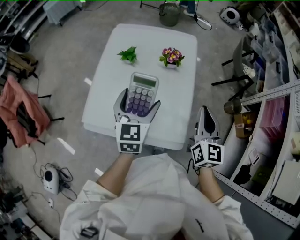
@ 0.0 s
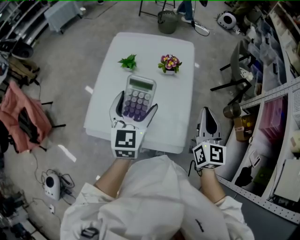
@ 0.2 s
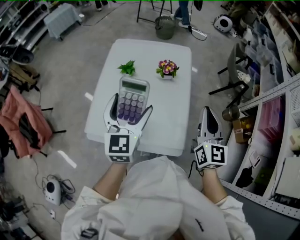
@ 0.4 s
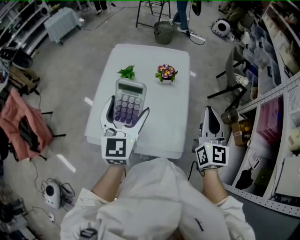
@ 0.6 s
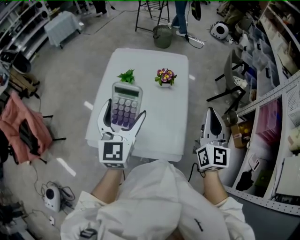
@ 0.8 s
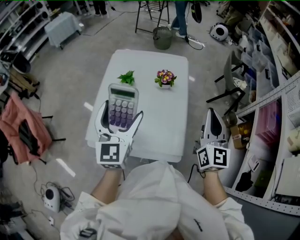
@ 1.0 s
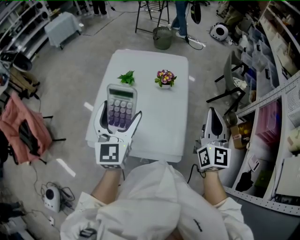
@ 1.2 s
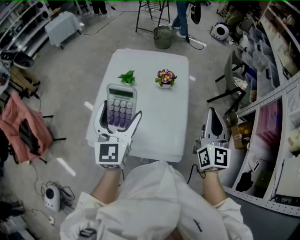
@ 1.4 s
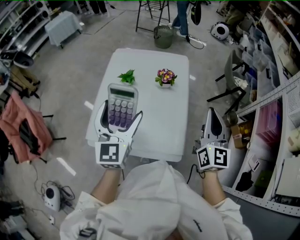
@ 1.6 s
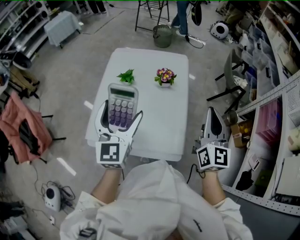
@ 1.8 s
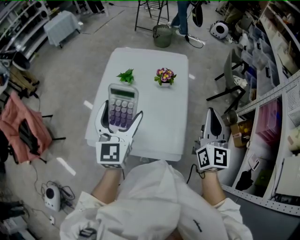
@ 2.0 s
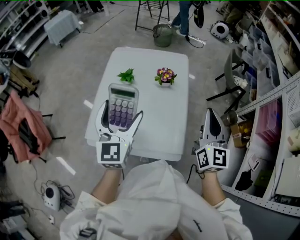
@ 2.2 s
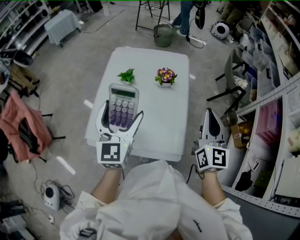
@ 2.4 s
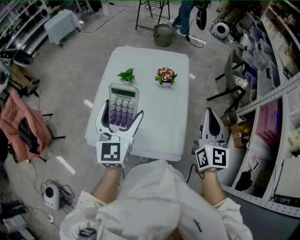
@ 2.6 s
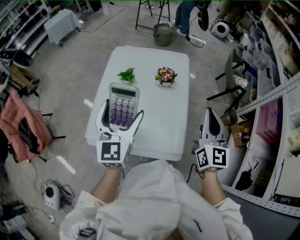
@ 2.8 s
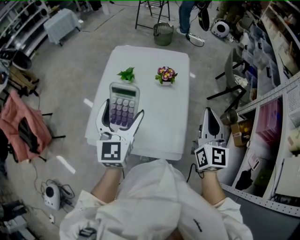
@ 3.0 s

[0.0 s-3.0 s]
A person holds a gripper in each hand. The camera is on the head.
0.0 to 1.6 s: The two grippers go approximately 10 cm upward.
1.6 to 3.0 s: The grippers make only small movements.

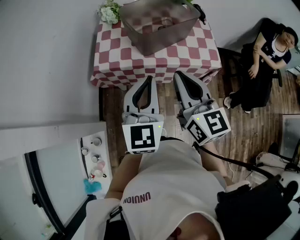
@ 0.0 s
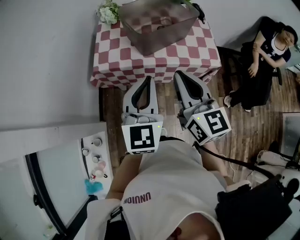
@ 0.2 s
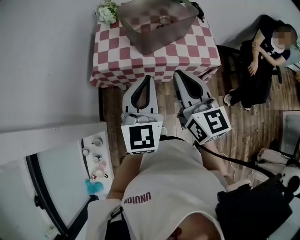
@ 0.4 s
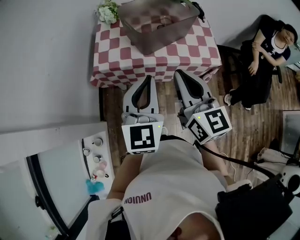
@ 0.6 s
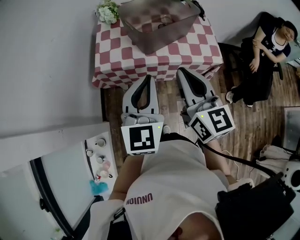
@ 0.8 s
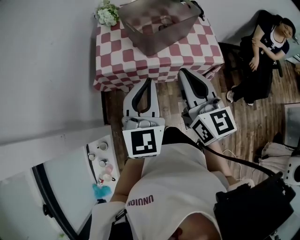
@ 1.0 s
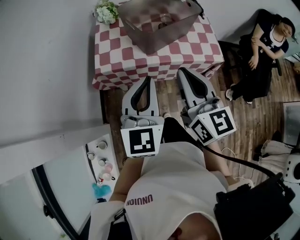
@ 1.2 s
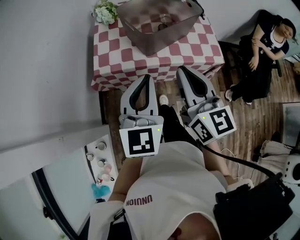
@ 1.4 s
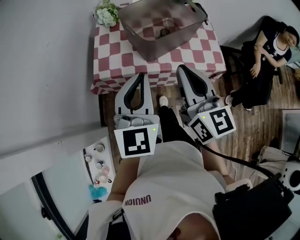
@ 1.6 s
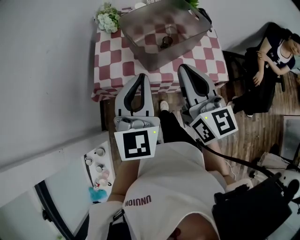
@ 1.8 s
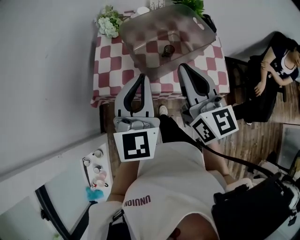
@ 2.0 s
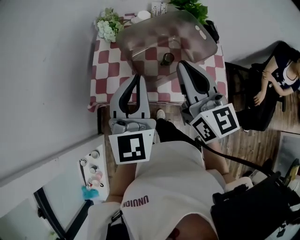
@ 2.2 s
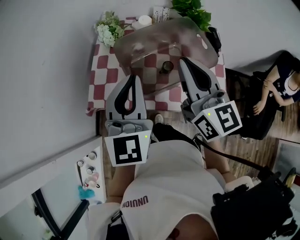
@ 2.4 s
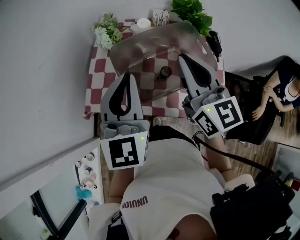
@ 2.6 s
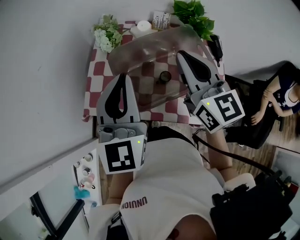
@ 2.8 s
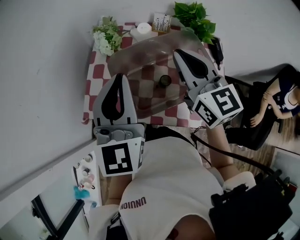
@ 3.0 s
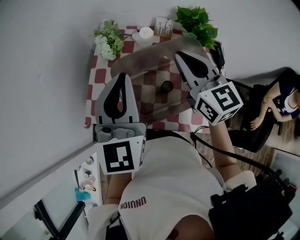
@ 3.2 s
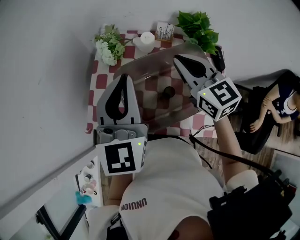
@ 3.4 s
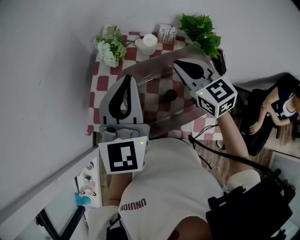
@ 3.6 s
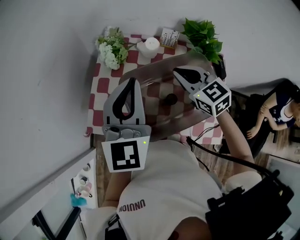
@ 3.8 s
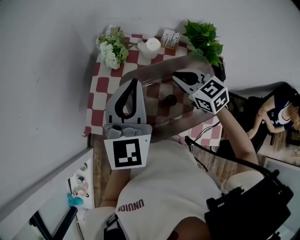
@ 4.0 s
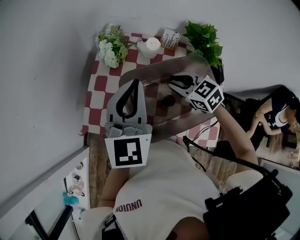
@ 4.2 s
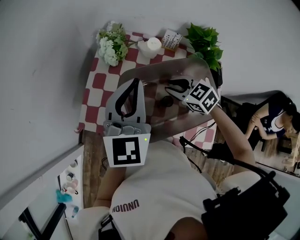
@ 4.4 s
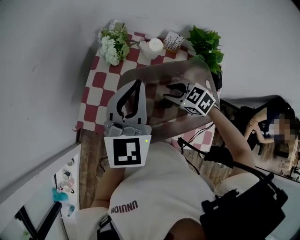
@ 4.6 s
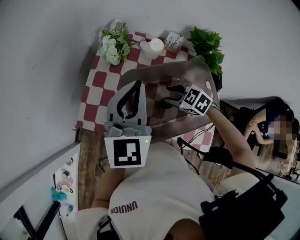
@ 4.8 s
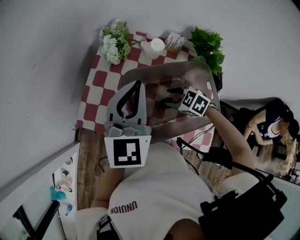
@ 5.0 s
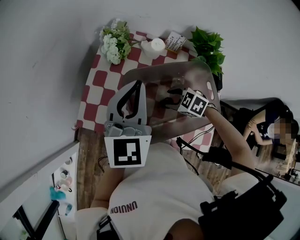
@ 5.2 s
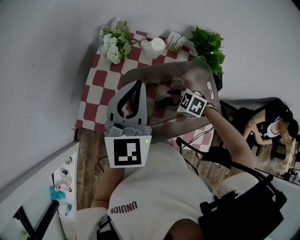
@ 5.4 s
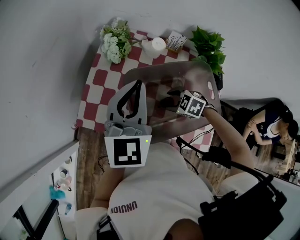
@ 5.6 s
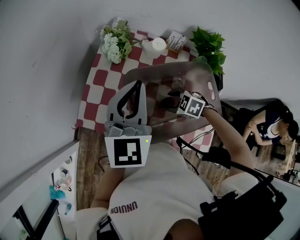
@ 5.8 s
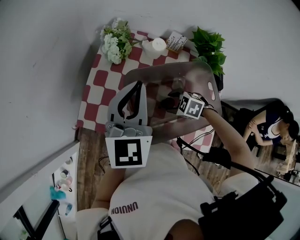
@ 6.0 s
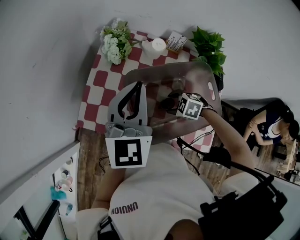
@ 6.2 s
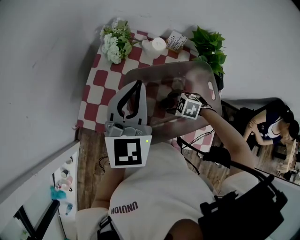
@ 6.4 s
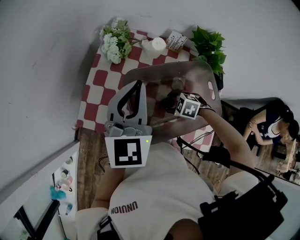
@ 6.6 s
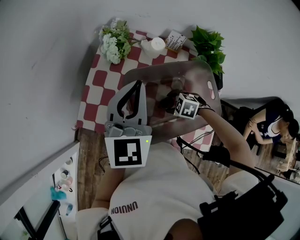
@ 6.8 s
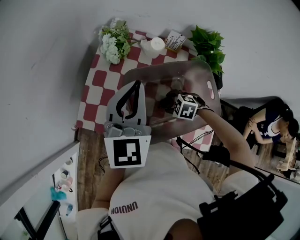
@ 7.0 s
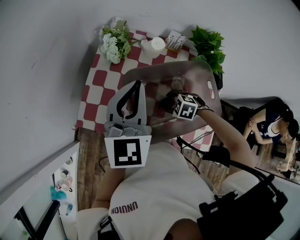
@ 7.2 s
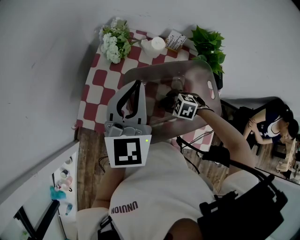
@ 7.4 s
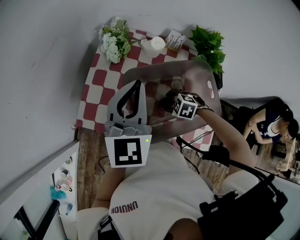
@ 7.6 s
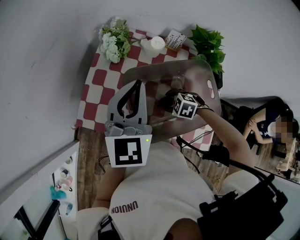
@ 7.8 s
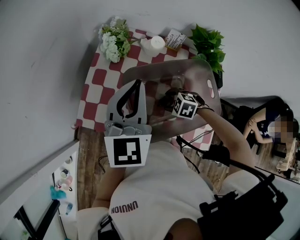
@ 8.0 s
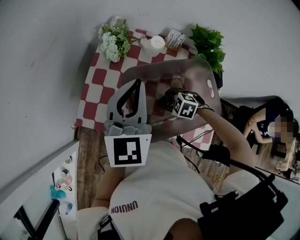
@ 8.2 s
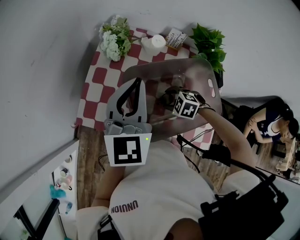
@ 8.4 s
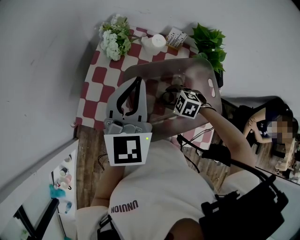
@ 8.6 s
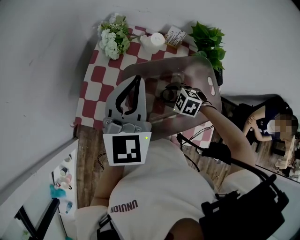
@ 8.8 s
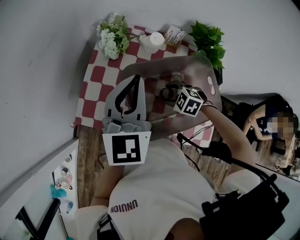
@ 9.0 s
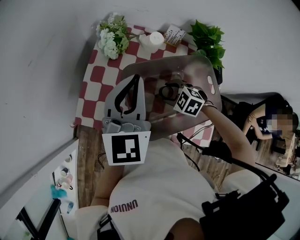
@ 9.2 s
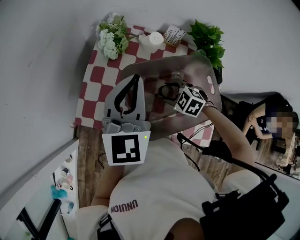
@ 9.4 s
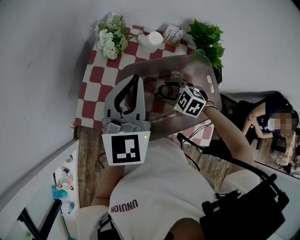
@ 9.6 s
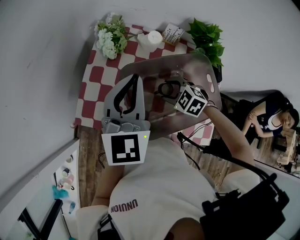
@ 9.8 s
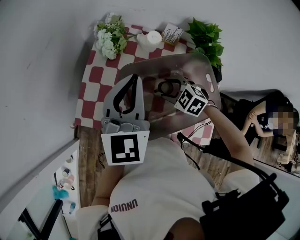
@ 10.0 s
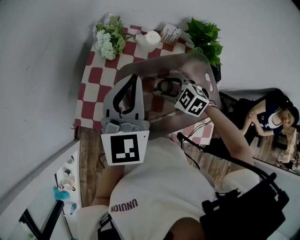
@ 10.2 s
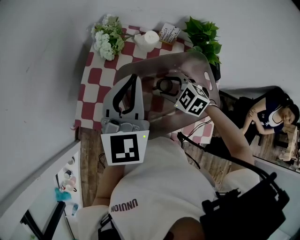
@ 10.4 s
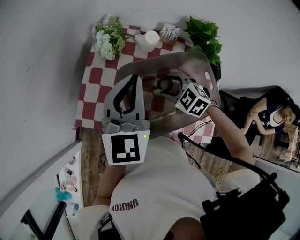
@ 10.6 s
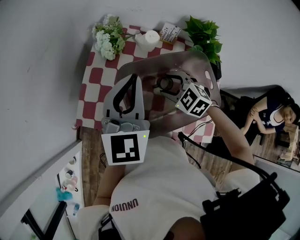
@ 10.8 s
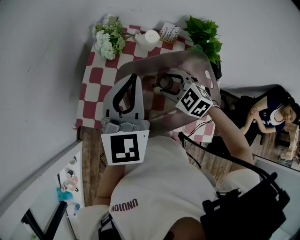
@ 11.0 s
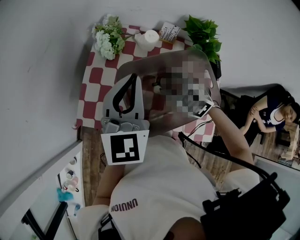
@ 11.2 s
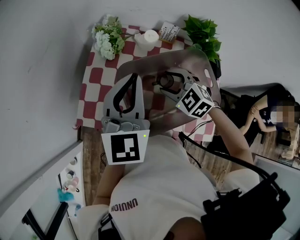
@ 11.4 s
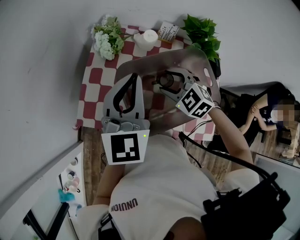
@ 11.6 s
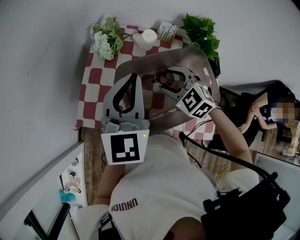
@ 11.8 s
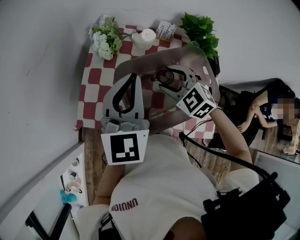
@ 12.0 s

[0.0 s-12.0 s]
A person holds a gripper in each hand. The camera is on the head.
0.0 to 1.6 s: The two grippers go about 5 cm forward.
1.6 to 3.0 s: Both grippers travel together forward, about 25 cm. The right gripper changes its angle by approximately 20 degrees.
3.0 to 4.4 s: The left gripper goes some 5 cm forward. The right gripper is displaced downward by roughly 20 cm, tips its fingers downward by roughly 40 degrees, and opens.
4.4 to 6.0 s: The right gripper moves downward and backward, about 15 cm, swivels roughly 30 degrees, and opens.
6.0 to 9.0 s: The grippers move only a little.
9.0 to 10.4 s: The right gripper moves upward, approximately 5 cm.
10.4 to 12.0 s: The right gripper is displaced upward by some 5 cm.

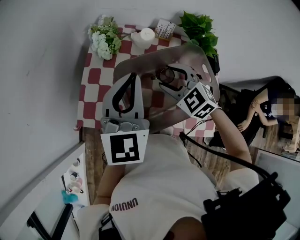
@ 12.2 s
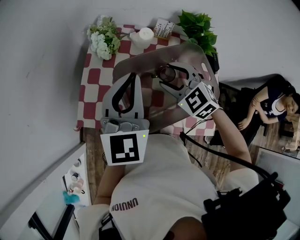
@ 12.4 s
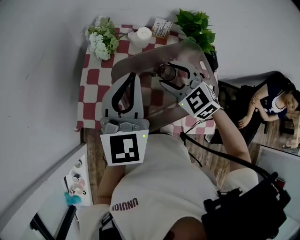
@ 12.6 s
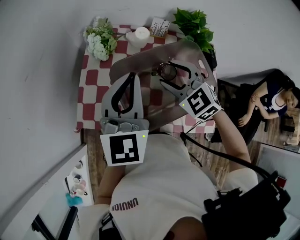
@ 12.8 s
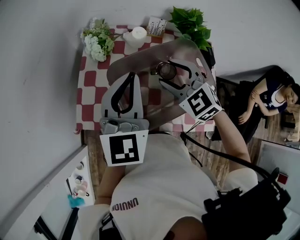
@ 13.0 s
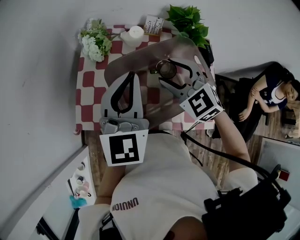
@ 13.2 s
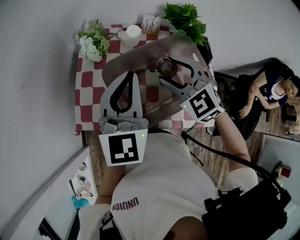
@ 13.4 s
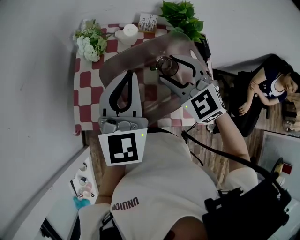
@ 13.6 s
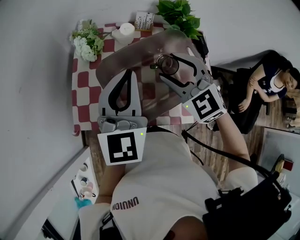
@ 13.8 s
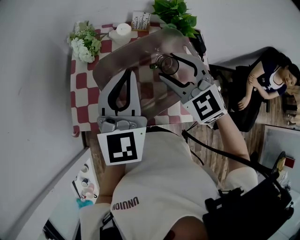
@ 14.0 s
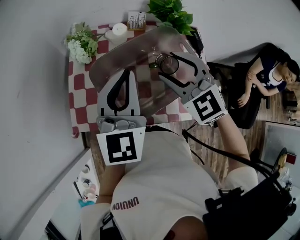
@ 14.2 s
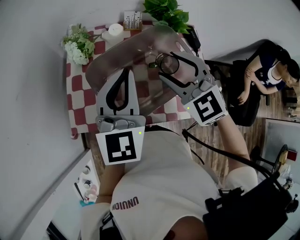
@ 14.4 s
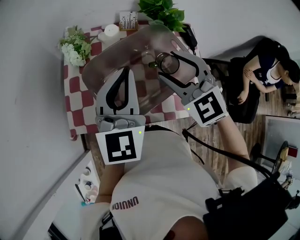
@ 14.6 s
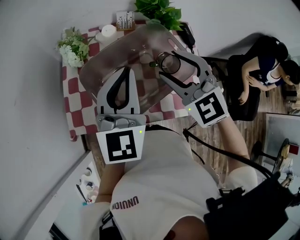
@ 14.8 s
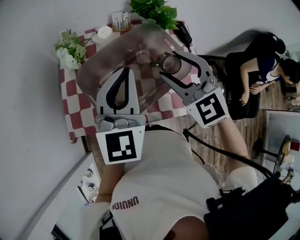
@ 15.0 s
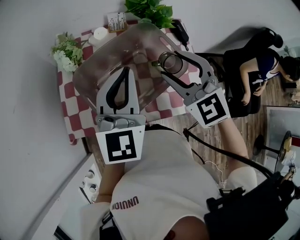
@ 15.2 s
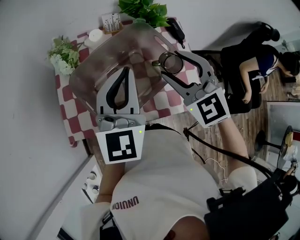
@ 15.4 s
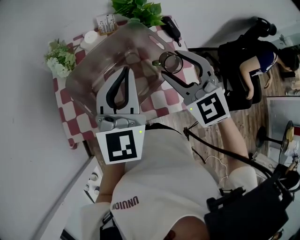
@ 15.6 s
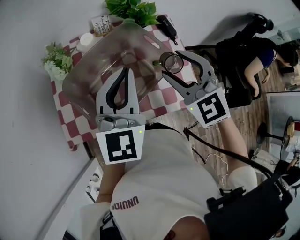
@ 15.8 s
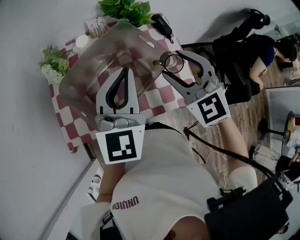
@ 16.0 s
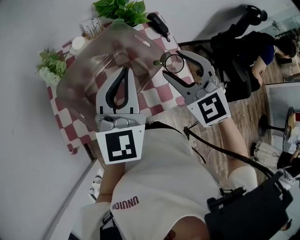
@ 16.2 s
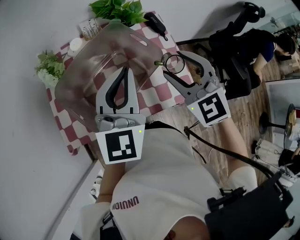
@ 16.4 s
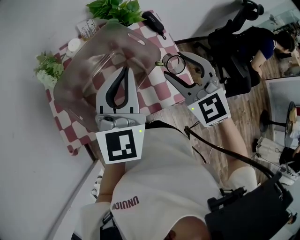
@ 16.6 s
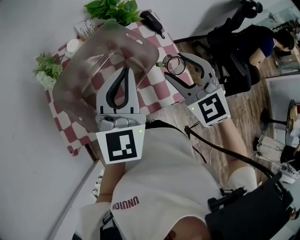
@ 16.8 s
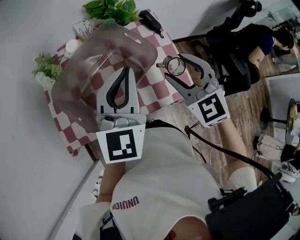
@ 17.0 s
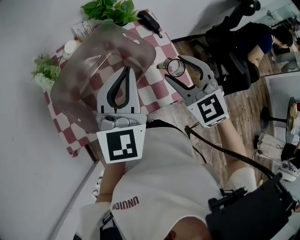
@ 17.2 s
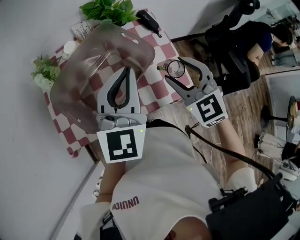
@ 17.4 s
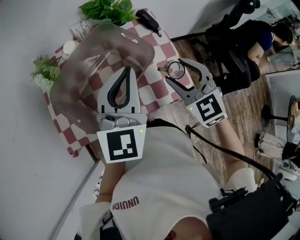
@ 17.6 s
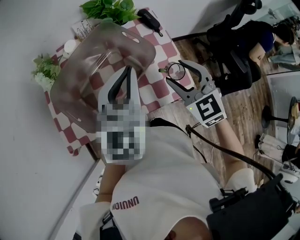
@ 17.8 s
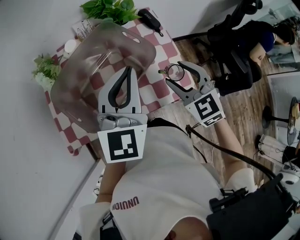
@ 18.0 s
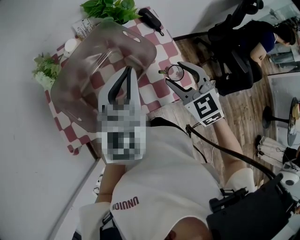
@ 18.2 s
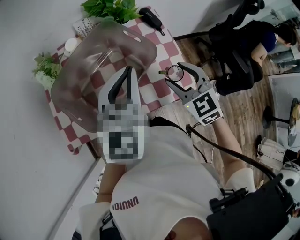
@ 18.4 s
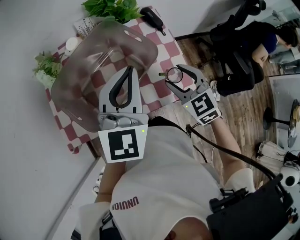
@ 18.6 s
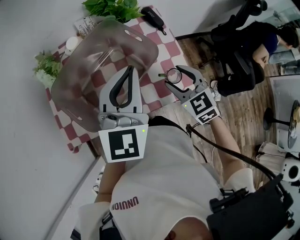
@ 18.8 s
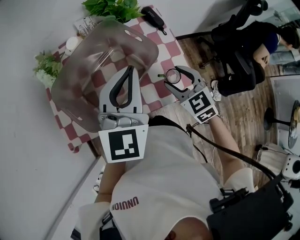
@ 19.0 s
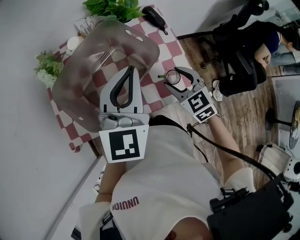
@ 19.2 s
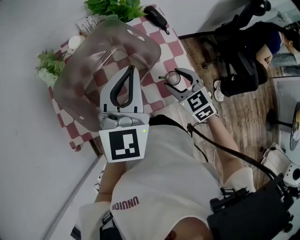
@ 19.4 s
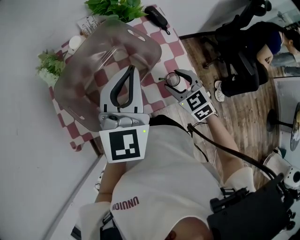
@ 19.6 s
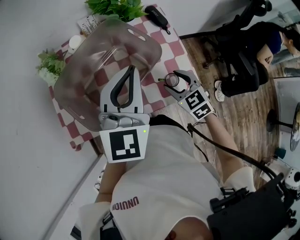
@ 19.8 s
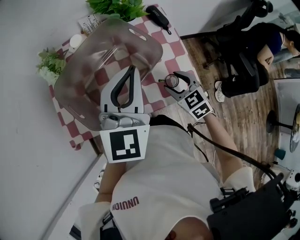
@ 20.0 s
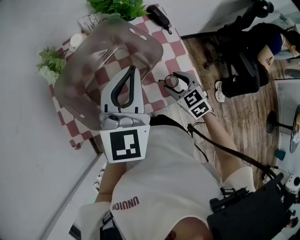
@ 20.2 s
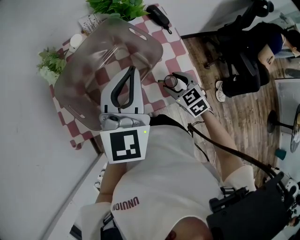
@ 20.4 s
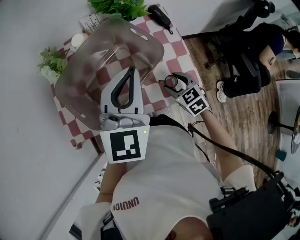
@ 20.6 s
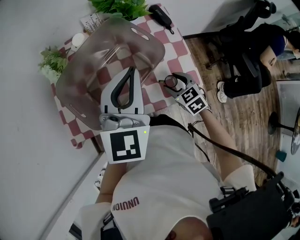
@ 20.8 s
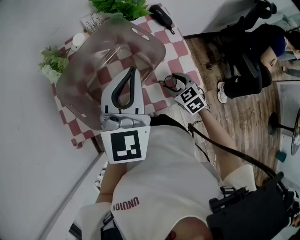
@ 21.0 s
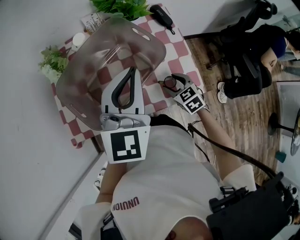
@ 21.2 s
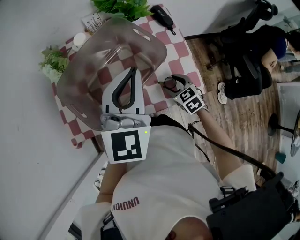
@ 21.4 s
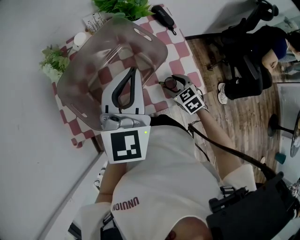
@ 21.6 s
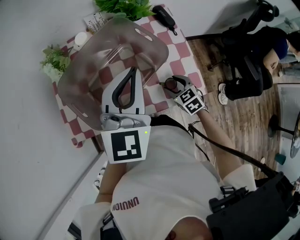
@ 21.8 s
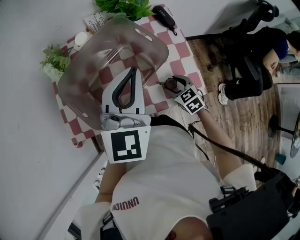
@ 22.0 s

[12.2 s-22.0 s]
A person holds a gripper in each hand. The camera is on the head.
12.2 to 13.6 s: The right gripper travels upward by roughly 5 cm.
13.6 to 15.0 s: The right gripper goes approximately 10 cm to the right and backward, while the left gripper travels to the right by some 5 cm.
15.0 to 16.4 s: Both grippers move to the right, some 10 cm.
16.4 to 17.8 s: The right gripper is displaced downward by some 5 cm.
17.8 to 19.2 s: The right gripper travels downward by roughly 10 cm.
19.2 to 20.6 s: The right gripper shifts some 10 cm downward.
20.6 to 22.0 s: There are only small adjustments of the grippers.
